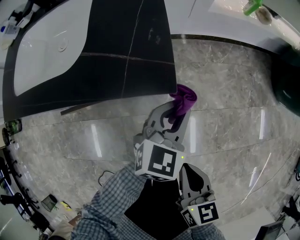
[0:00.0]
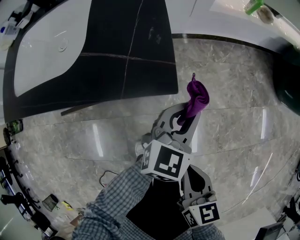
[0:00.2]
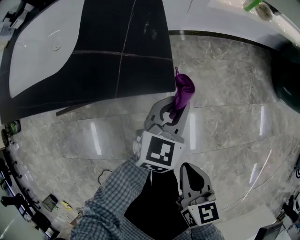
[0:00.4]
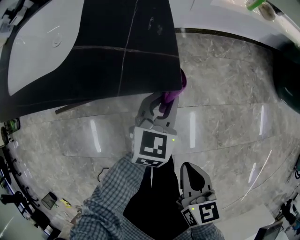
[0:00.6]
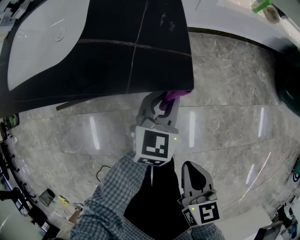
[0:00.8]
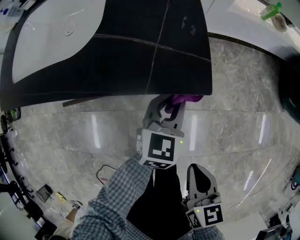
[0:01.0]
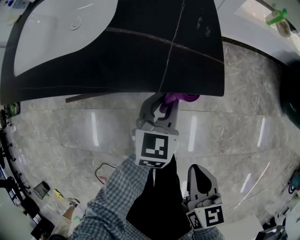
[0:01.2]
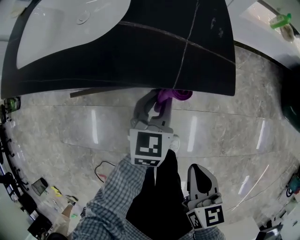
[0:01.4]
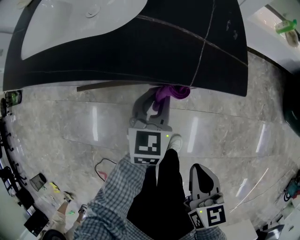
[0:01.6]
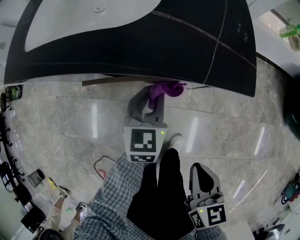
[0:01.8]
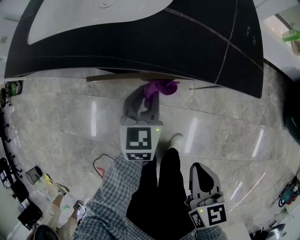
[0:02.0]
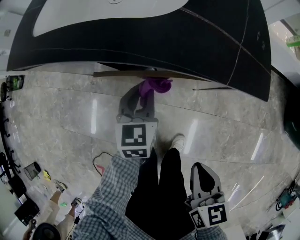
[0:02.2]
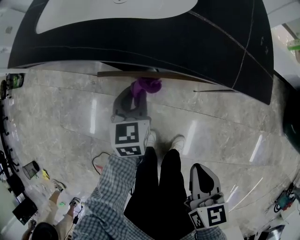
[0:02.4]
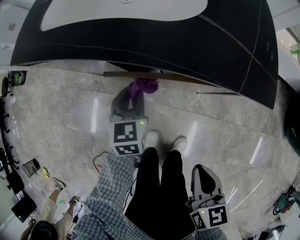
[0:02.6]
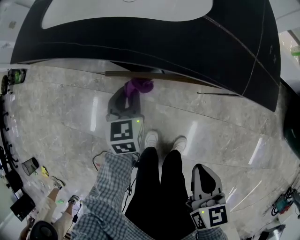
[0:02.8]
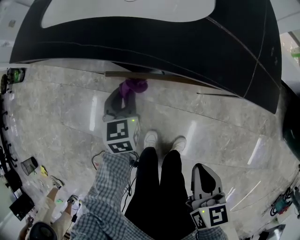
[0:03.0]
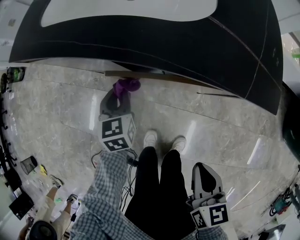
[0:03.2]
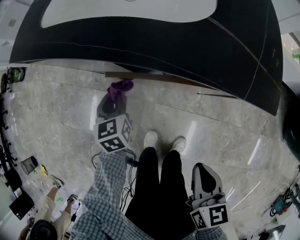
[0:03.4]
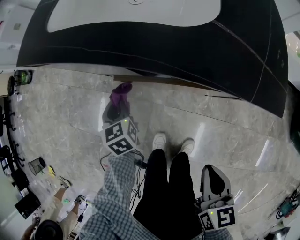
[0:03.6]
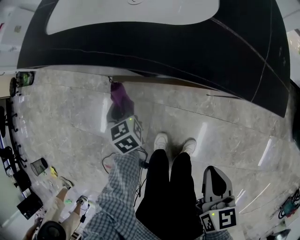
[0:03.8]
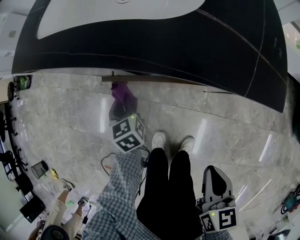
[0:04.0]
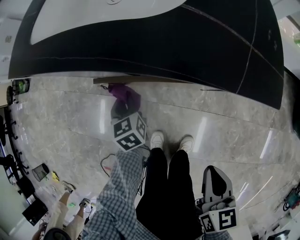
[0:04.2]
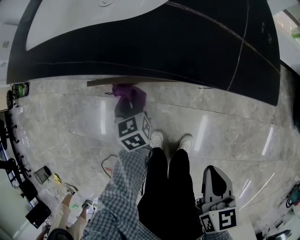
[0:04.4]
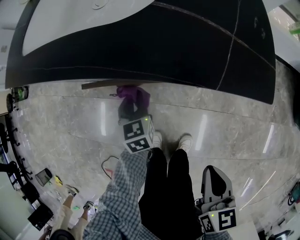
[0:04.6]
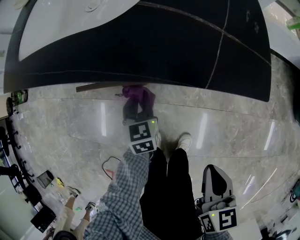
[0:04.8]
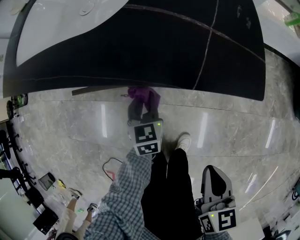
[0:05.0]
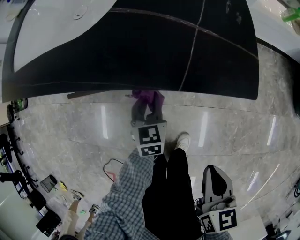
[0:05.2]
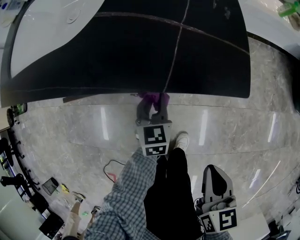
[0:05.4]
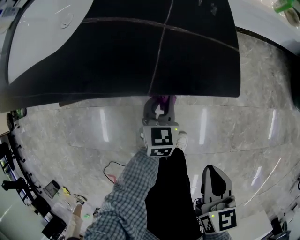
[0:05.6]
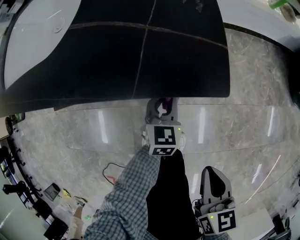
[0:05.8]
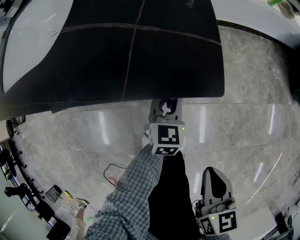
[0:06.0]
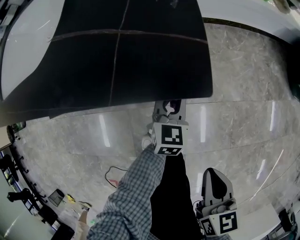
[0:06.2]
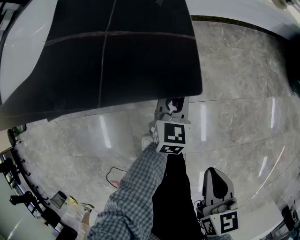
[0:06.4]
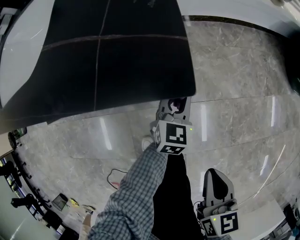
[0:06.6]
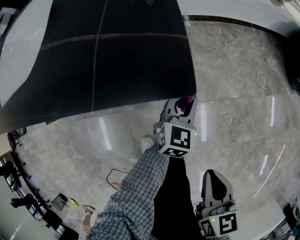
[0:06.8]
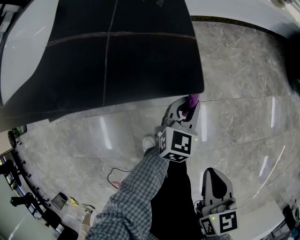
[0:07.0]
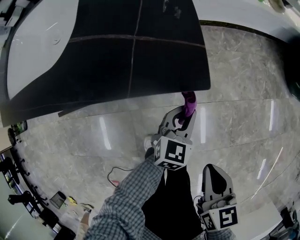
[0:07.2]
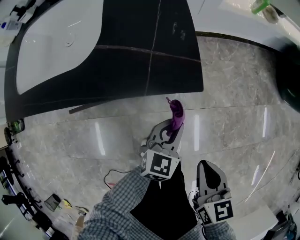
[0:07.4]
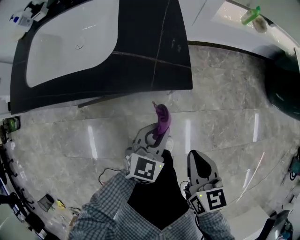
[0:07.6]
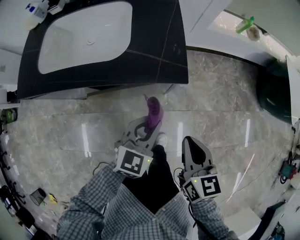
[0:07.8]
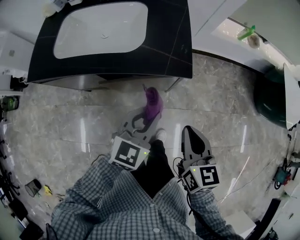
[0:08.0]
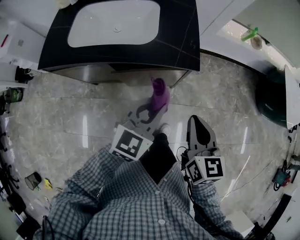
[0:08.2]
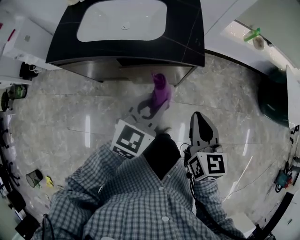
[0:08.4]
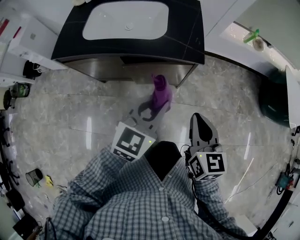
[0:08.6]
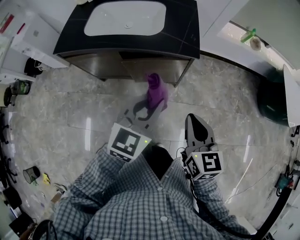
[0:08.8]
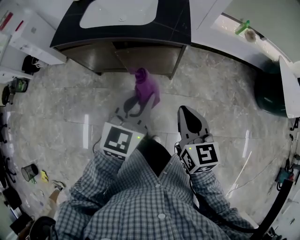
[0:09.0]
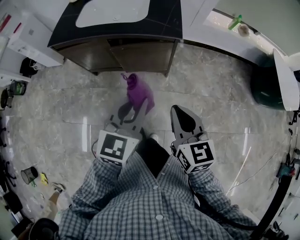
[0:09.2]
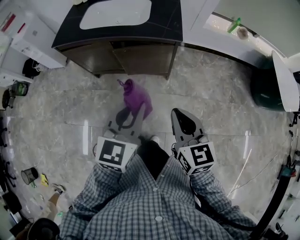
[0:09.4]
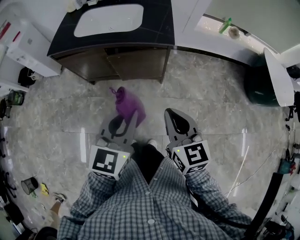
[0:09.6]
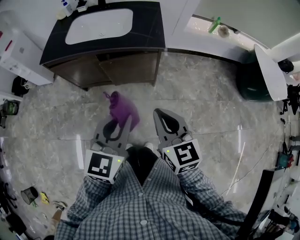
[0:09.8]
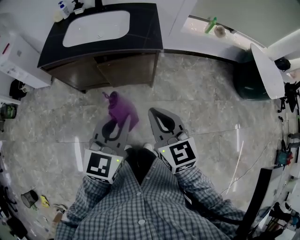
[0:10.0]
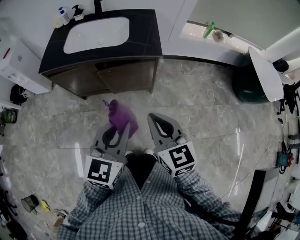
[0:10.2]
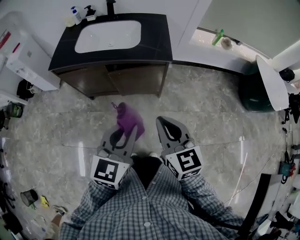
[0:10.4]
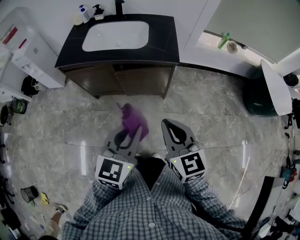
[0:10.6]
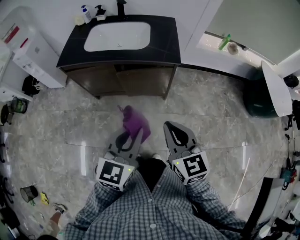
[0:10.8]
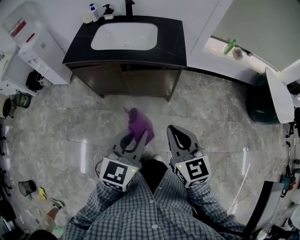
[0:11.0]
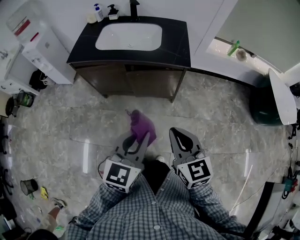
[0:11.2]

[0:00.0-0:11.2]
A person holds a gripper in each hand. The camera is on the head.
0:00.0 to 0:01.6: The right gripper is displaced to the left by approximately 5 cm, while the left gripper goes some 20 cm to the left and downward, and turns by some 30 degrees.
0:01.6 to 0:03.2: The left gripper moves to the left, about 25 cm, and swivels roughly 30 degrees; the right gripper is displaced to the left by approximately 5 cm.
0:03.2 to 0:04.8: The right gripper is displaced to the right by approximately 5 cm; the left gripper heads to the right and downward, covering approximately 15 cm.
0:04.8 to 0:06.4: The right gripper travels to the right by approximately 10 cm; the left gripper travels to the right by approximately 25 cm, and changes its angle by about 30 degrees.
0:06.4 to 0:08.0: The right gripper moves upward and to the left, roughly 30 cm, and turns by about 20 degrees. The left gripper shifts roughly 40 cm upward and backward.
0:08.0 to 0:09.6: The two grippers go roughly 25 cm backward and upward.
0:09.6 to 0:11.2: The right gripper shifts some 5 cm to the left.

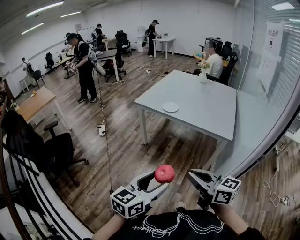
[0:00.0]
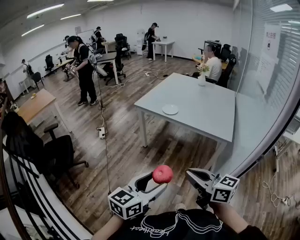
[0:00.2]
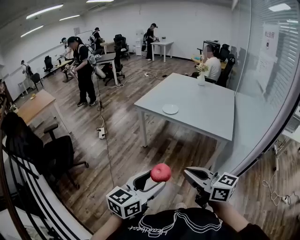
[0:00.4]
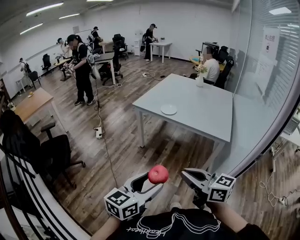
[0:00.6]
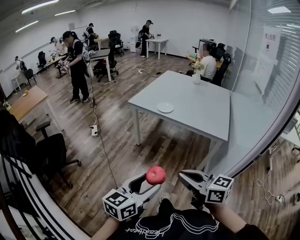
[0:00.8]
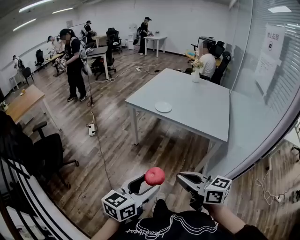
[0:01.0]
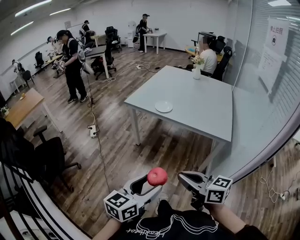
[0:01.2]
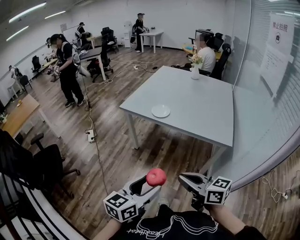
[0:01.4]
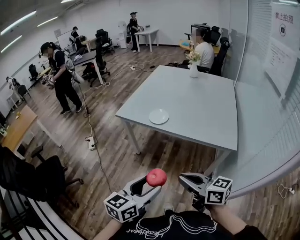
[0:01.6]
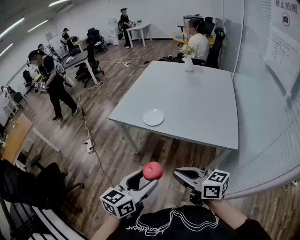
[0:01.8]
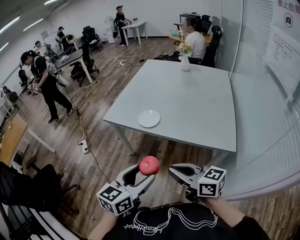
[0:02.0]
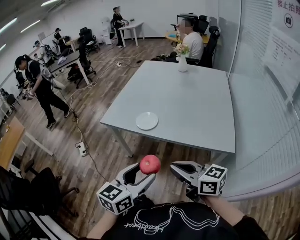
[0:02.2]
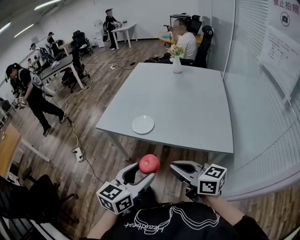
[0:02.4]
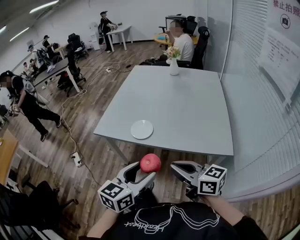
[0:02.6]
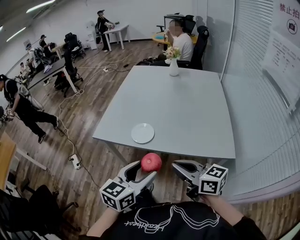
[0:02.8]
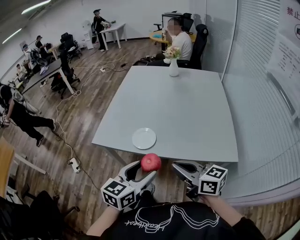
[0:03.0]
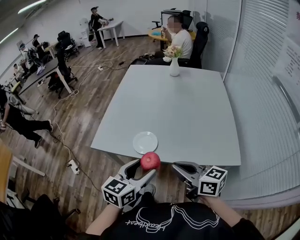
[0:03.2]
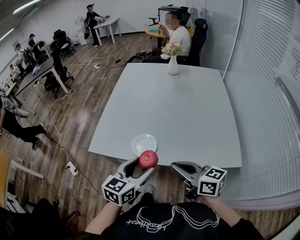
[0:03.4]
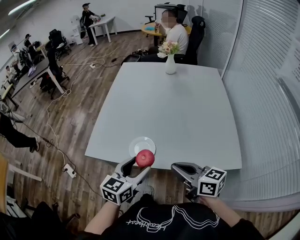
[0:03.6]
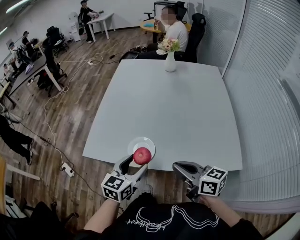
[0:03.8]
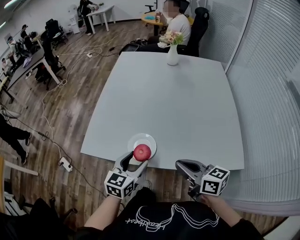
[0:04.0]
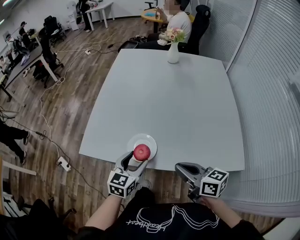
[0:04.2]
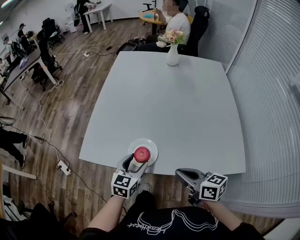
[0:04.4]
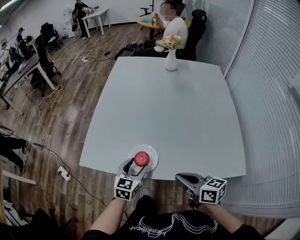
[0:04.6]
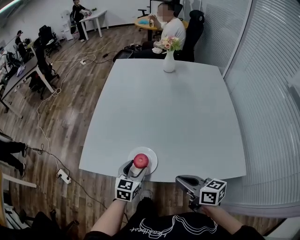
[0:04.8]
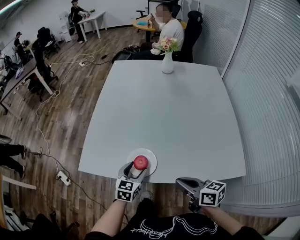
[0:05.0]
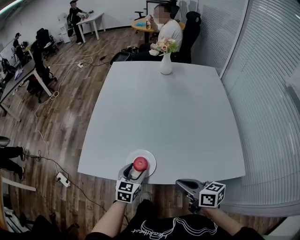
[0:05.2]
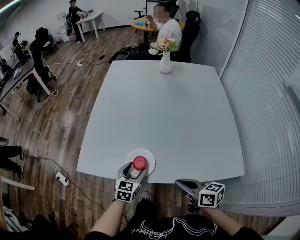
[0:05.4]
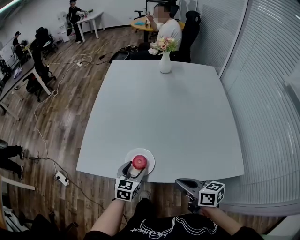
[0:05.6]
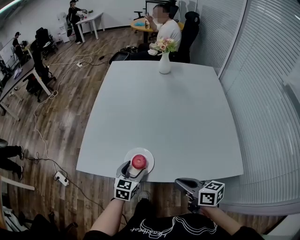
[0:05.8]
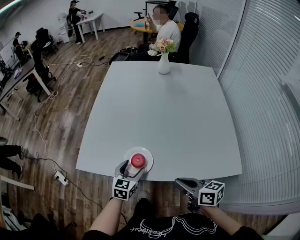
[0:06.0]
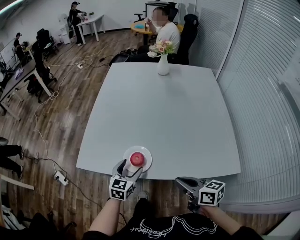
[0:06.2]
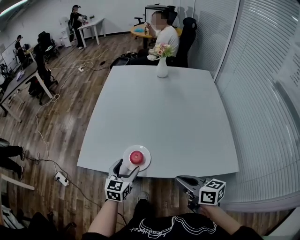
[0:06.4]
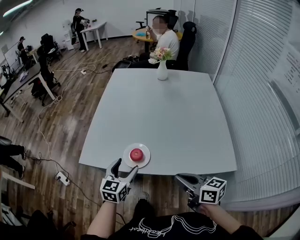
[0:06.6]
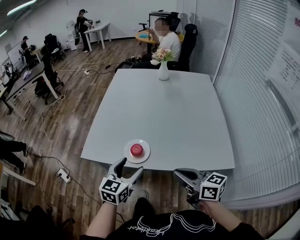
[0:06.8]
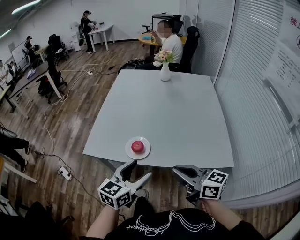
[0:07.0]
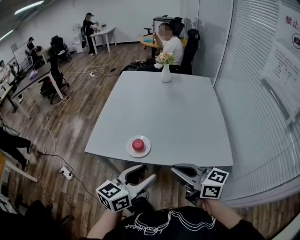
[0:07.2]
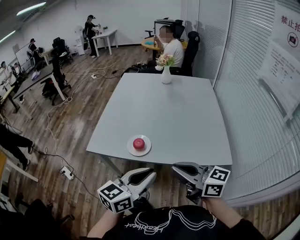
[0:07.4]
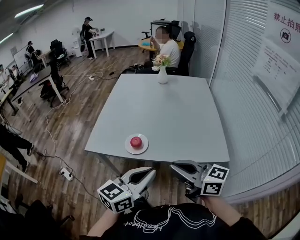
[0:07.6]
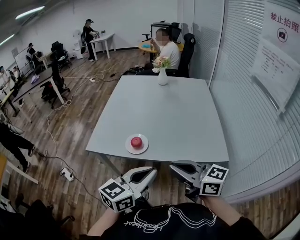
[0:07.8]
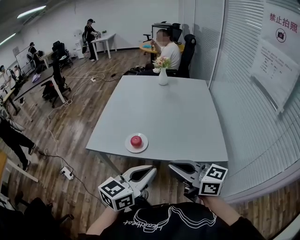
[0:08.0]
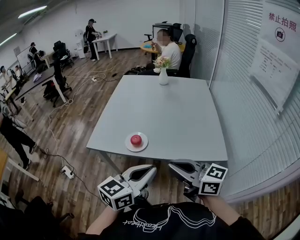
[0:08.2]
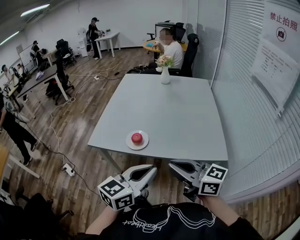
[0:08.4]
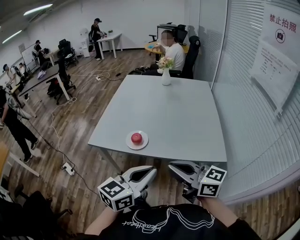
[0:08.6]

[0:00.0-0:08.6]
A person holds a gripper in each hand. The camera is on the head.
0:00.0 to 0:01.4: The left gripper travels forward by about 15 cm; the right gripper goes about 15 cm forward and downward.
0:01.4 to 0:02.8: The two grippers go approximately 30 cm forward.
0:02.8 to 0:04.4: Both grippers travel together forward and downward, some 30 cm.
0:04.4 to 0:05.8: The left gripper shifts by about 5 cm.
0:05.8 to 0:07.2: The left gripper is displaced upward and backward by approximately 35 cm, and changes its angle by approximately 30 degrees, while the right gripper is displaced upward and backward by approximately 20 cm, and changes its angle by some 30 degrees.
0:07.2 to 0:08.6: The grippers both shift backward by approximately 10 cm. The left gripper closes up.

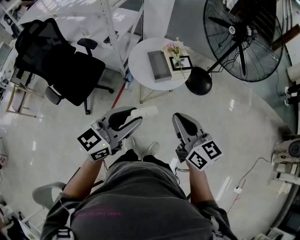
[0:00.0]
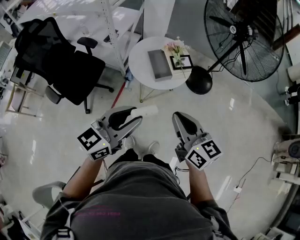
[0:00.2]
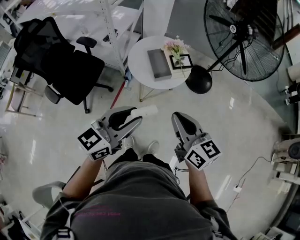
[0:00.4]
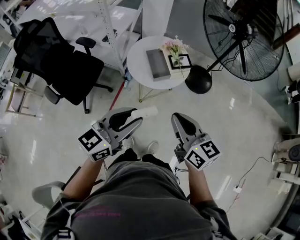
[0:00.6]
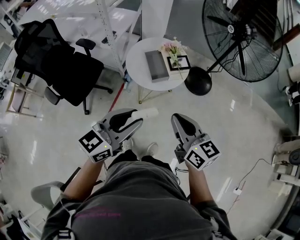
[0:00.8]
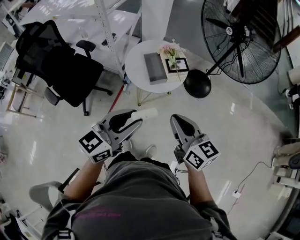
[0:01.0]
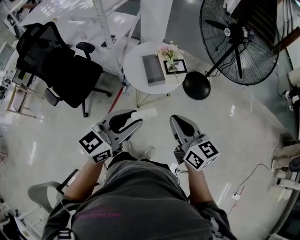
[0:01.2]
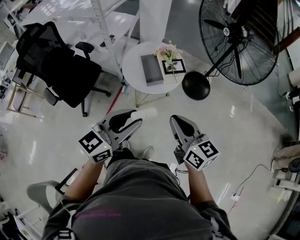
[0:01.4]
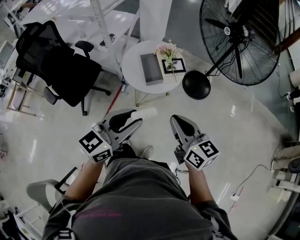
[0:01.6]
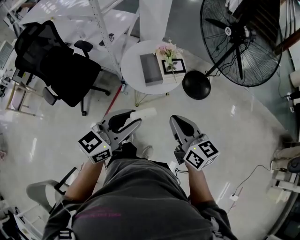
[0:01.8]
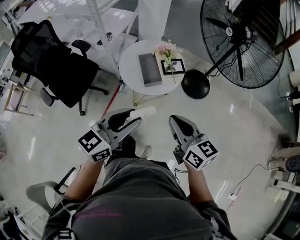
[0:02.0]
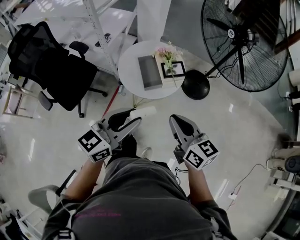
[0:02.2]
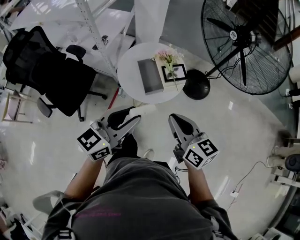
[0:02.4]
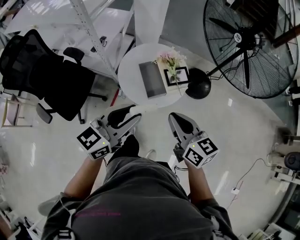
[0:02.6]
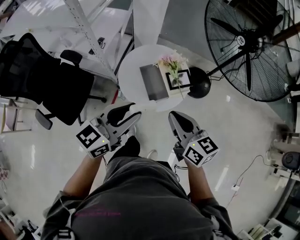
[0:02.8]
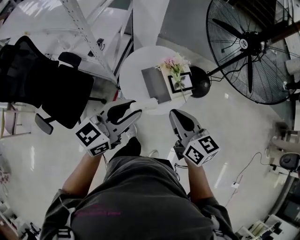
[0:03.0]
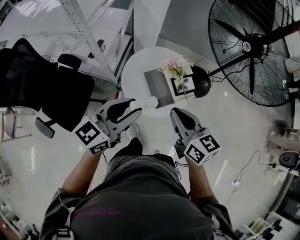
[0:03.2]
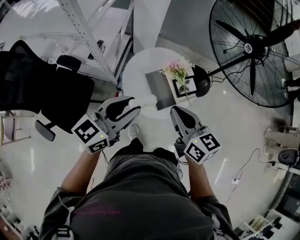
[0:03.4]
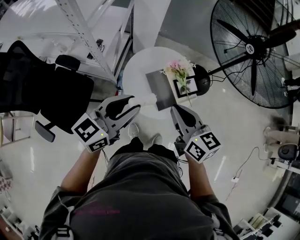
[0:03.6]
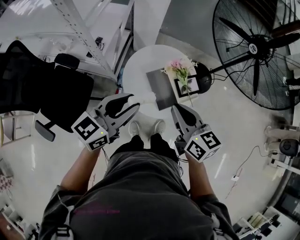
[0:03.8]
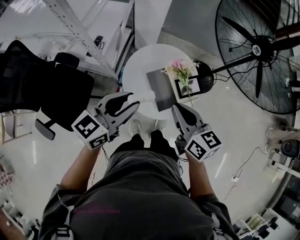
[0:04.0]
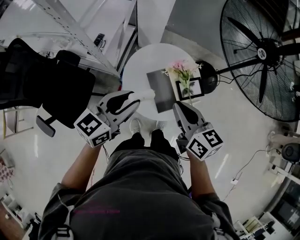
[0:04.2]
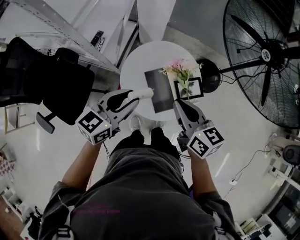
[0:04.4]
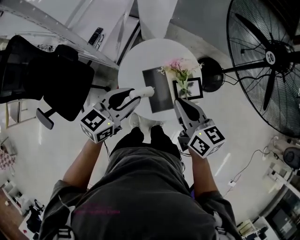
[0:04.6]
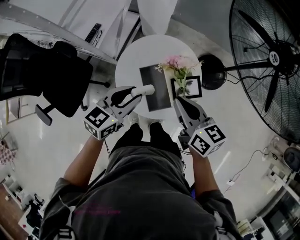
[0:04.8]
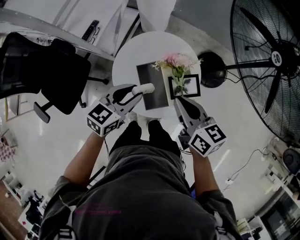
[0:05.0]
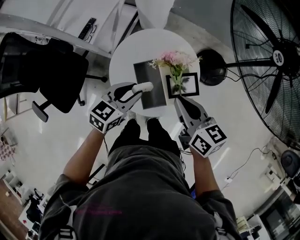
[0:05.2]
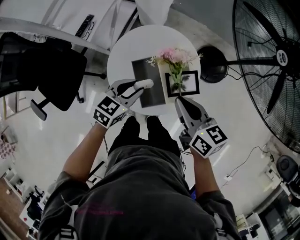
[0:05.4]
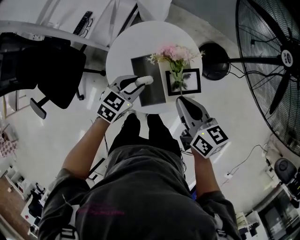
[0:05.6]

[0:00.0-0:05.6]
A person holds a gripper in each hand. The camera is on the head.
0:00.0 to 0:01.4: The grippers both shift to the right by about 5 cm.
0:01.4 to 0:02.8: The grippers both shift forward and to the left by roughly 25 cm.
0:02.8 to 0:04.2: The left gripper moves forward, to the left and downward, about 15 cm; the right gripper shifts roughly 15 cm forward and to the left.
0:04.2 to 0:05.6: The left gripper is displaced downward and to the right by some 25 cm, and changes its angle by about 30 degrees, while the right gripper shifts roughly 15 cm to the right and downward.
